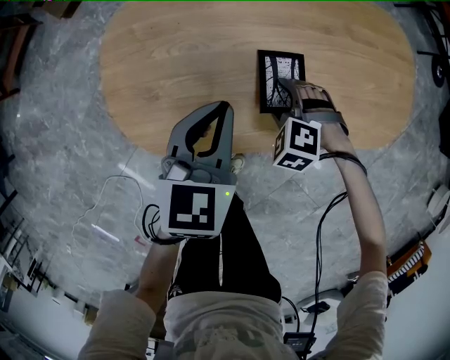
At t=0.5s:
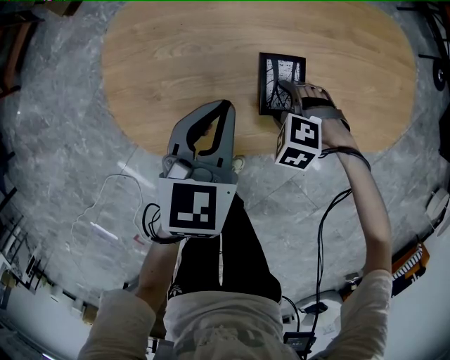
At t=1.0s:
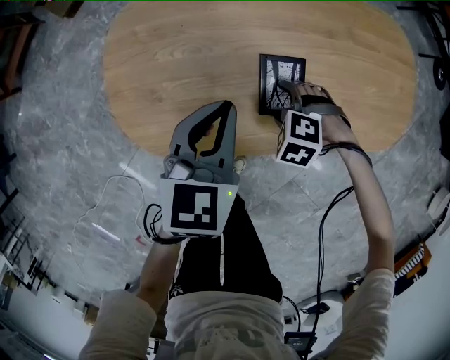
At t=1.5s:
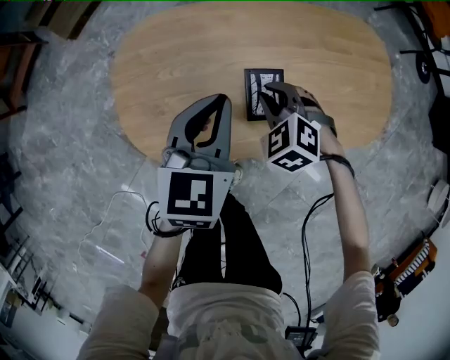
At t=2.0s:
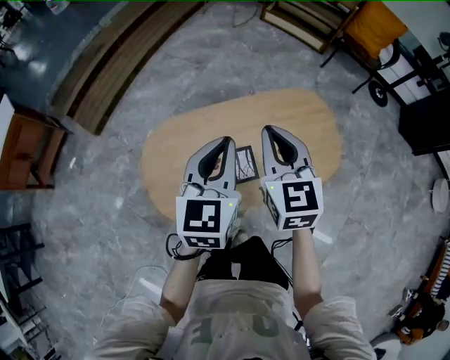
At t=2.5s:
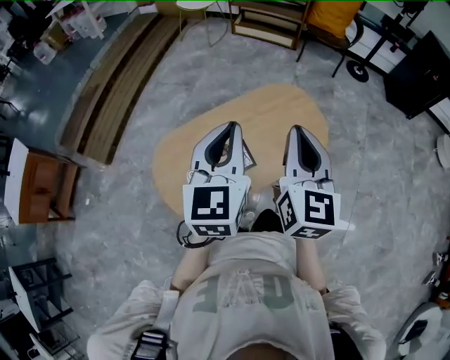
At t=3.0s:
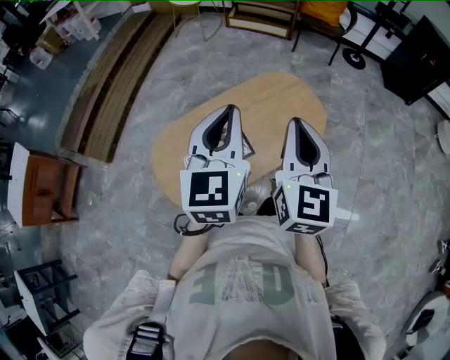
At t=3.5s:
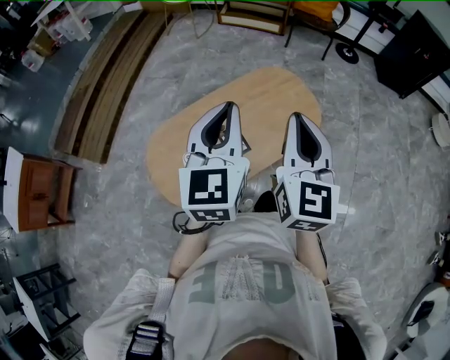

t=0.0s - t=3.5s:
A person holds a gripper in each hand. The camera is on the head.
t=0.0s - t=2.0s: The right gripper shifts about 50 cm upward, angles its fingers upward, by about 50 degrees, and closes its fingers; the left gripper travels upward by about 30 cm, and changes its angle by approximately 20 degrees.
t=2.0s - t=3.5s: The right gripper moves to the right, backward and upward, roughly 25 cm, and turns by about 30 degrees. The left gripper heads upward, to the right and backward, covering approximately 20 cm.

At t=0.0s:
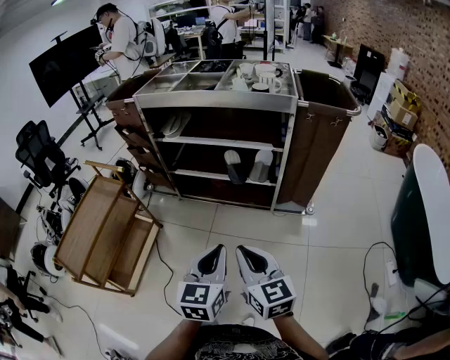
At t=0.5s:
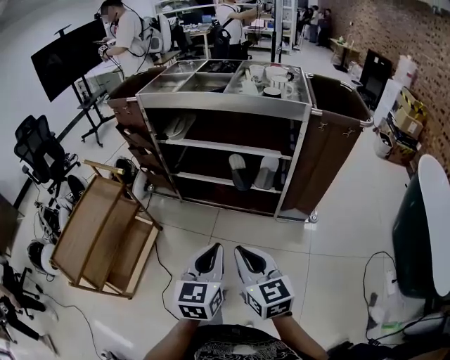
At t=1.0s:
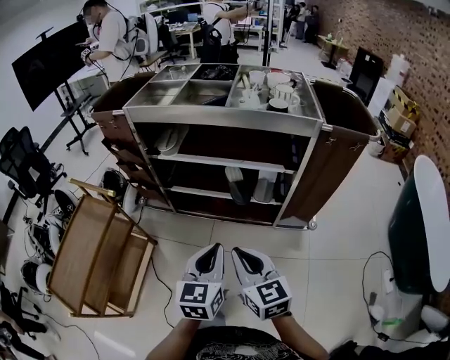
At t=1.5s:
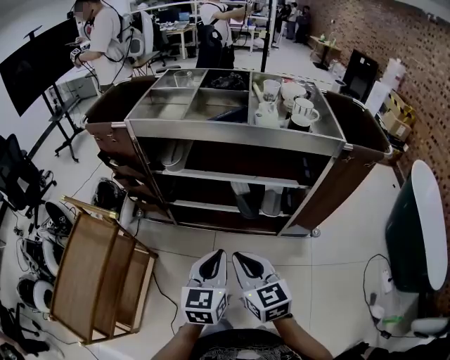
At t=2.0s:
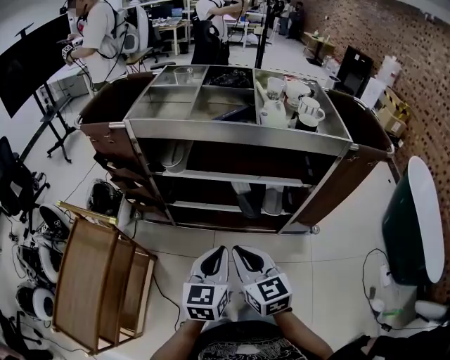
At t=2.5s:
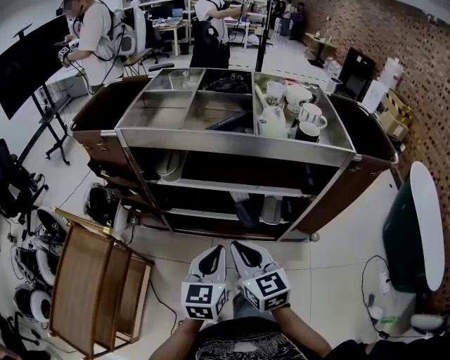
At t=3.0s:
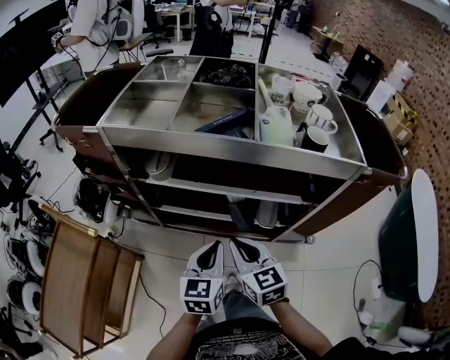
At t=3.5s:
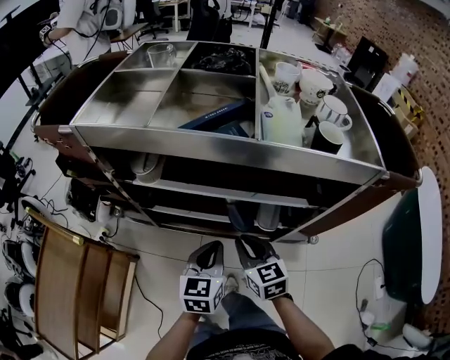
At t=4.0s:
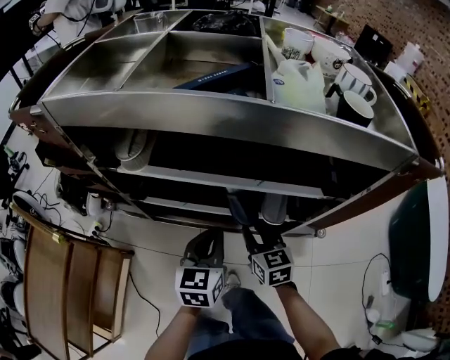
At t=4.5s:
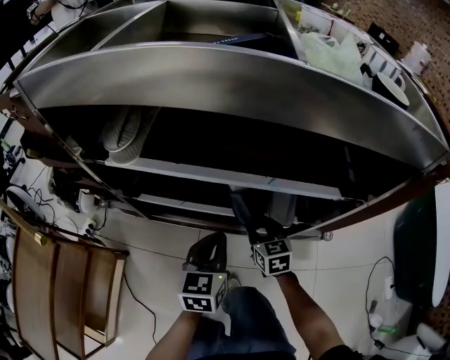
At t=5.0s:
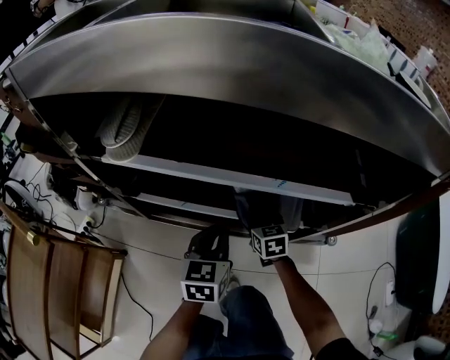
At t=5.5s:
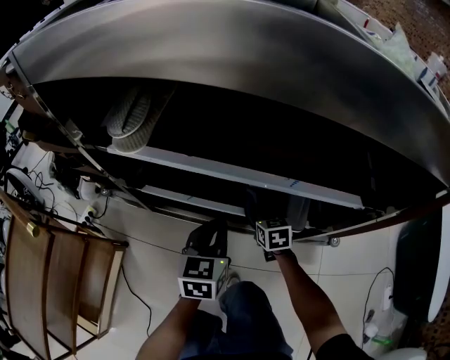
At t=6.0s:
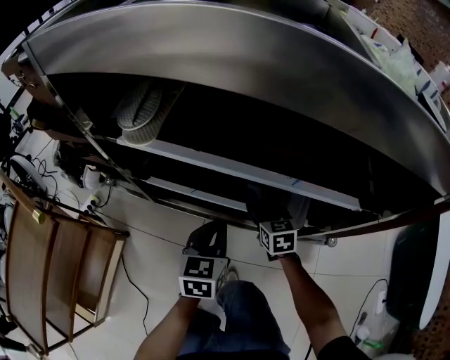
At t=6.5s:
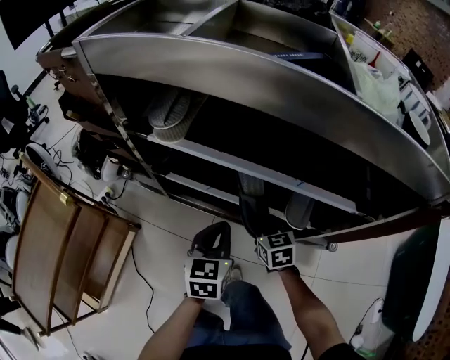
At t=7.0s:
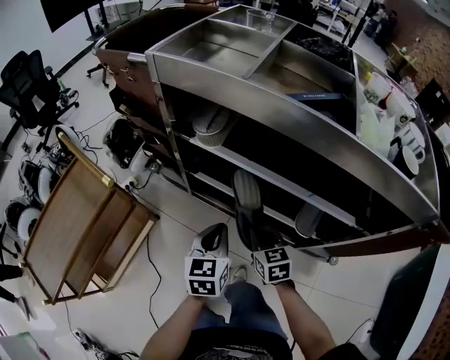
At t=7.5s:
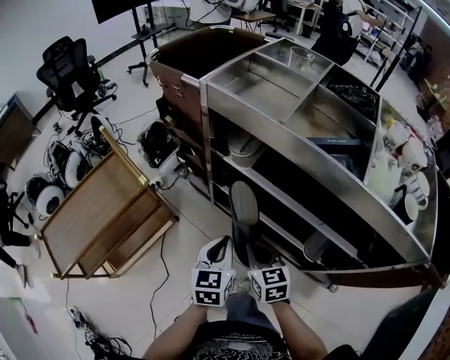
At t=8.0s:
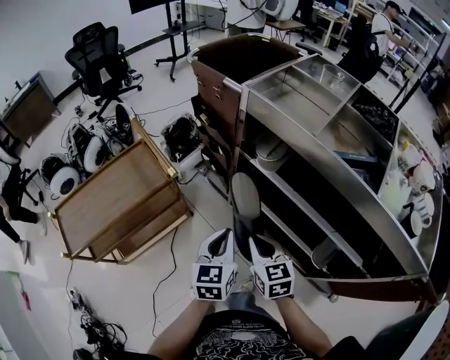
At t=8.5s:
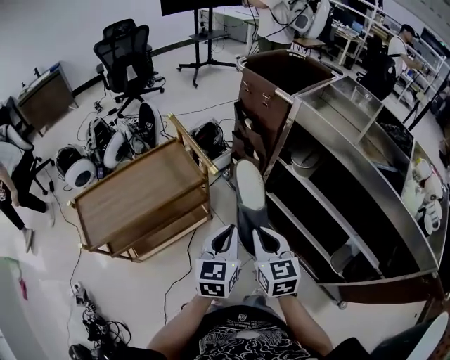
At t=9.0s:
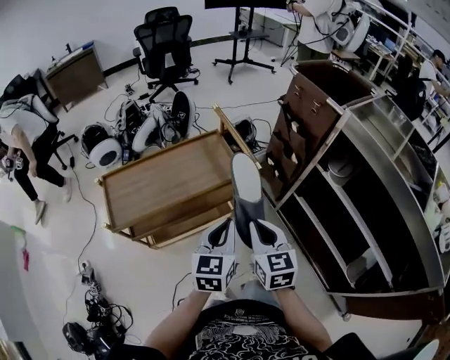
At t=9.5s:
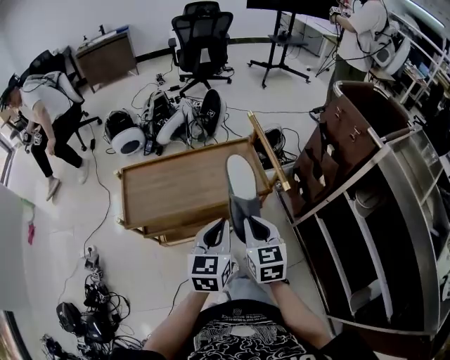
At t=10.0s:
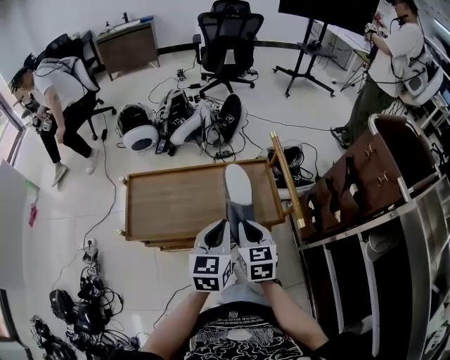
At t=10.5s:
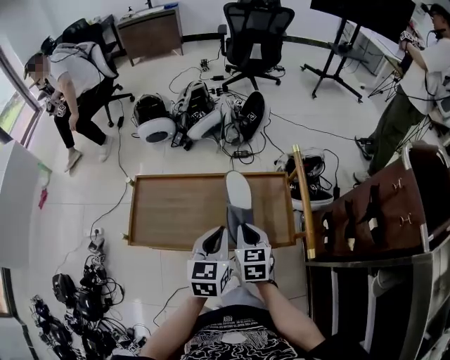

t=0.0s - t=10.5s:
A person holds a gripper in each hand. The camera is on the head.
t=0.0s - t=2.0s: Both grippers travel together forward and to the left, about 35 cm.
t=2.0s - t=4.0s: The right gripper travels downward, forward and to the right by some 35 cm. The left gripper shifts approximately 25 cm forward and downward.
t=4.0s - t=6.5s: The right gripper moves downward, roughly 10 cm, and opens, then closes again. The left gripper shifts approximately 10 cm downward and to the left.
t=6.5s - t=8.5s: The left gripper ends up approximately 35 cm from where it was, and turns by about 30 degrees, while the right gripper changes place by roughly 40 cm, and changes its angle by roughly 40 degrees.
t=8.5s - t=10.5s: The left gripper changes place by some 40 cm, and rotates about 40 degrees. The right gripper shifts by about 50 cm, and swivels some 30 degrees.

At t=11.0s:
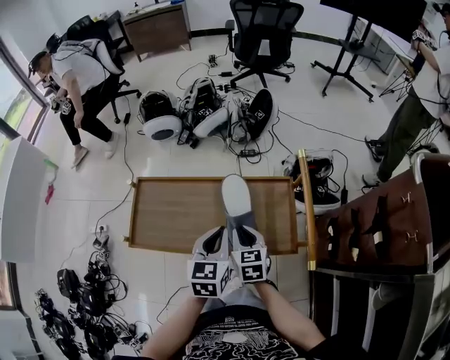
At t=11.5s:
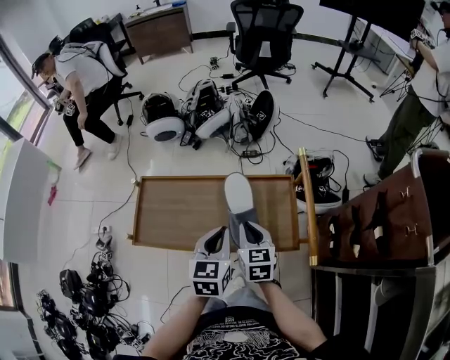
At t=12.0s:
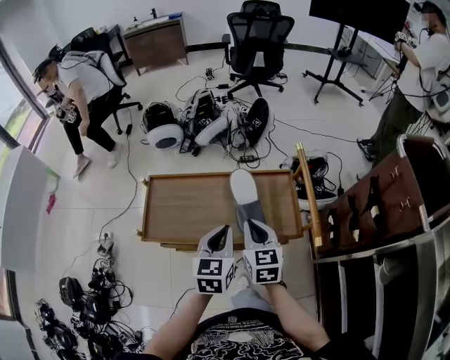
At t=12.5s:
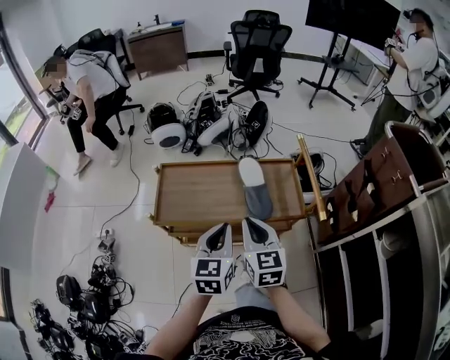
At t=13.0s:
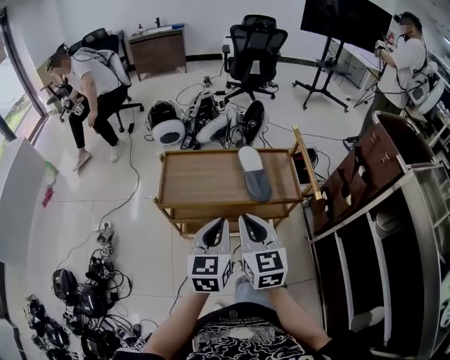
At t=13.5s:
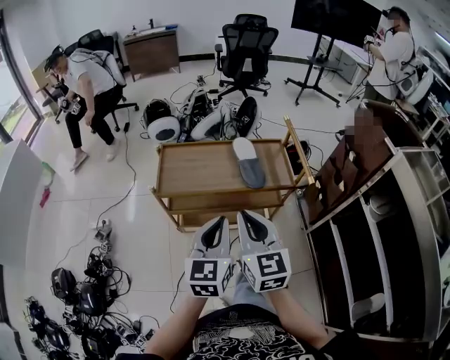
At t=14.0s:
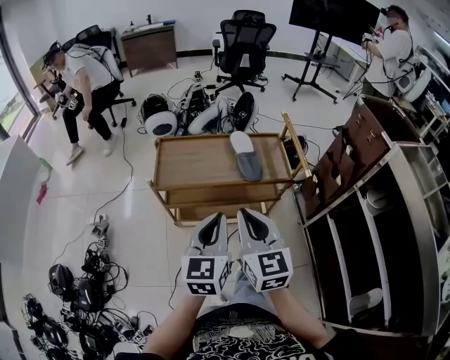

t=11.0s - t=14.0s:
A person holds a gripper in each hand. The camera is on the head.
t=11.0s - t=12.5s: The left gripper heads backward, to the left and upward, covering roughly 20 cm, while the right gripper goes about 20 cm upward, backward and to the left.
t=12.5s - t=14.0s: The left gripper heads backward, covering approximately 15 cm. The right gripper travels backward and upward by about 20 cm.

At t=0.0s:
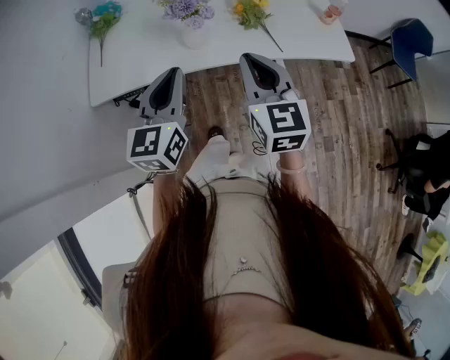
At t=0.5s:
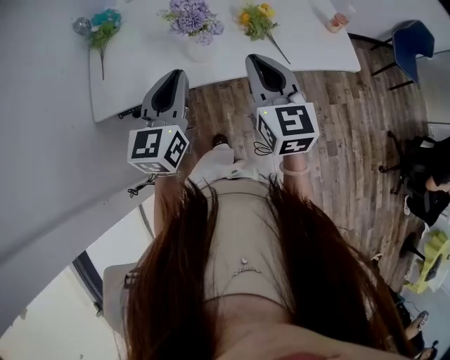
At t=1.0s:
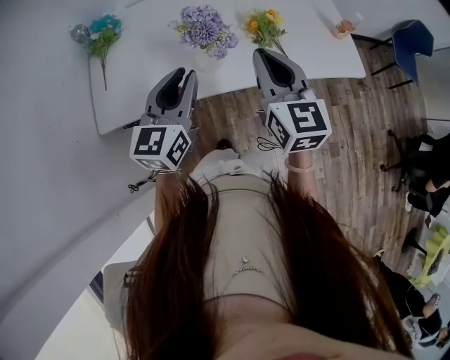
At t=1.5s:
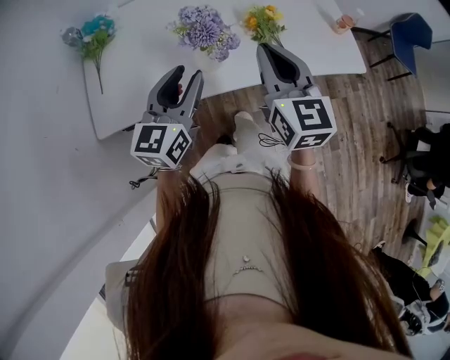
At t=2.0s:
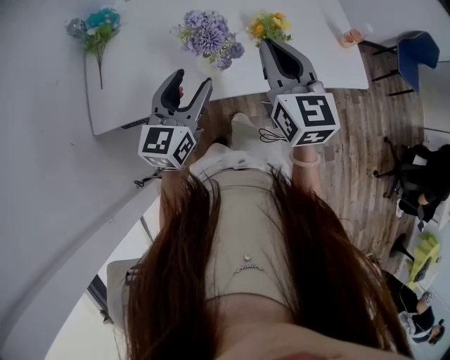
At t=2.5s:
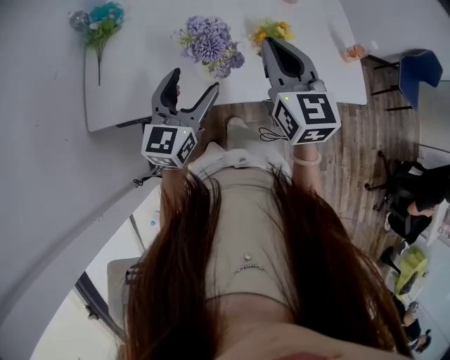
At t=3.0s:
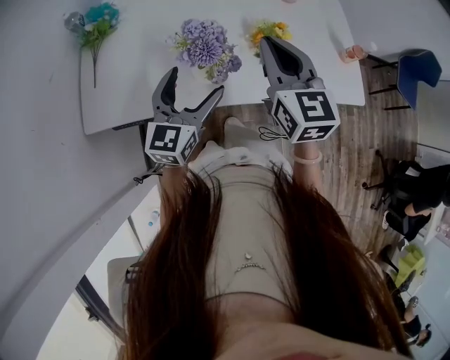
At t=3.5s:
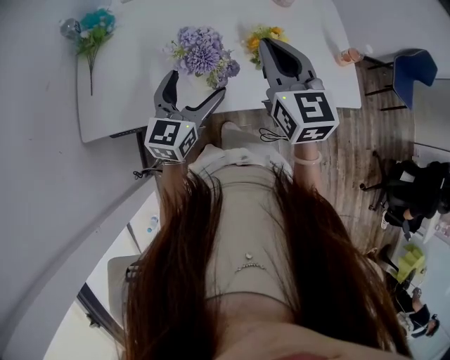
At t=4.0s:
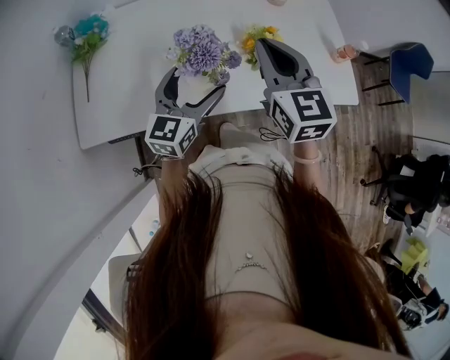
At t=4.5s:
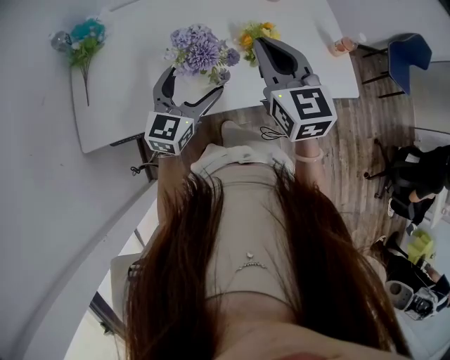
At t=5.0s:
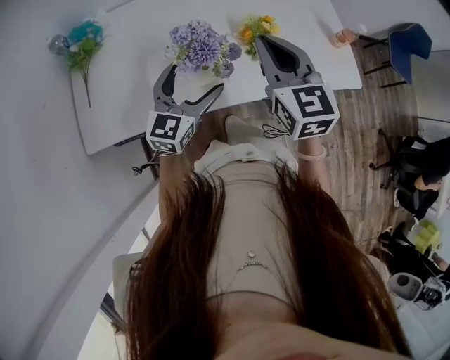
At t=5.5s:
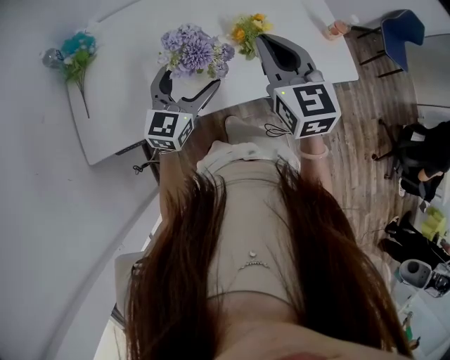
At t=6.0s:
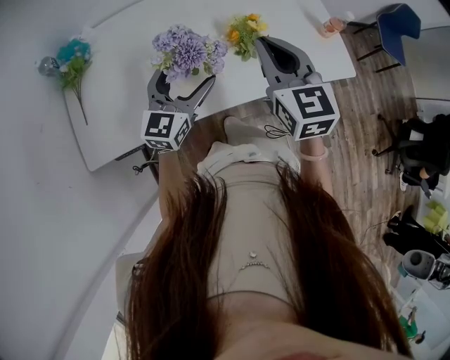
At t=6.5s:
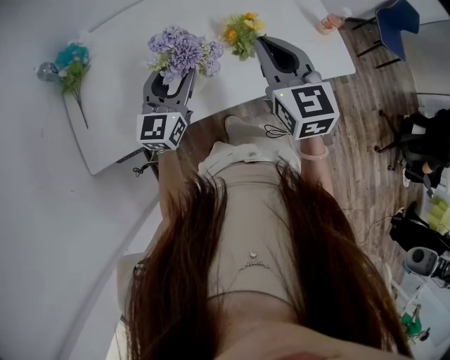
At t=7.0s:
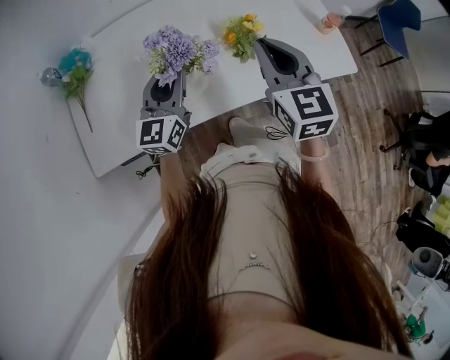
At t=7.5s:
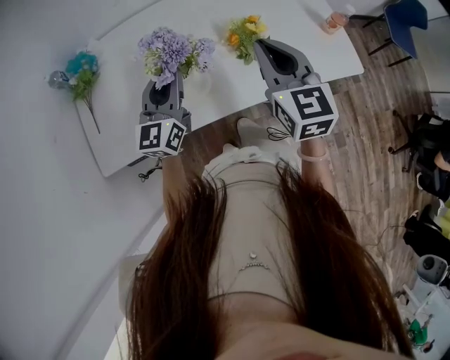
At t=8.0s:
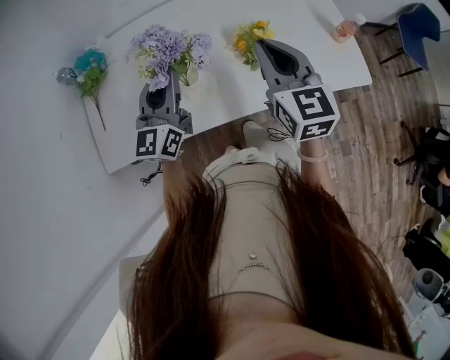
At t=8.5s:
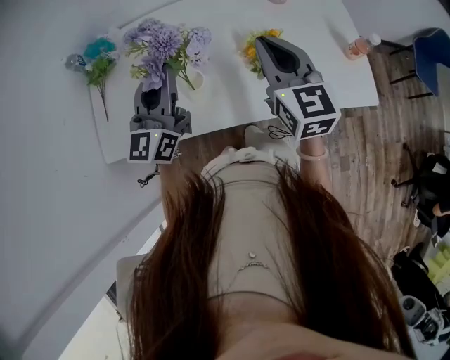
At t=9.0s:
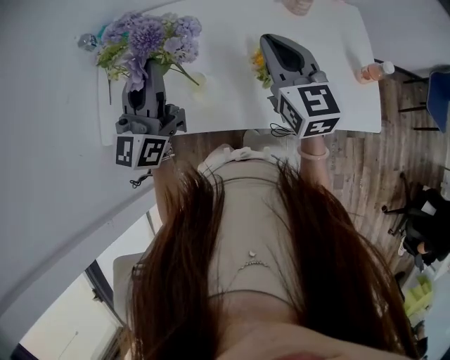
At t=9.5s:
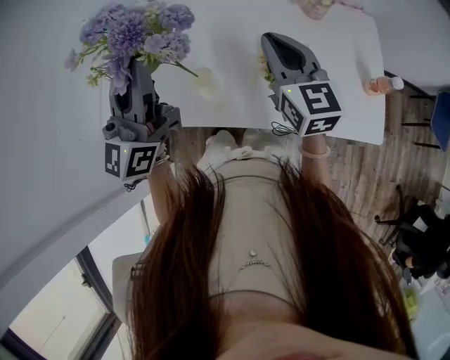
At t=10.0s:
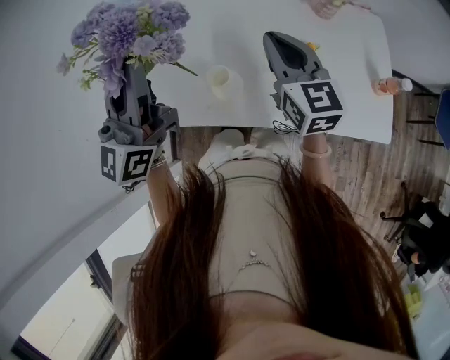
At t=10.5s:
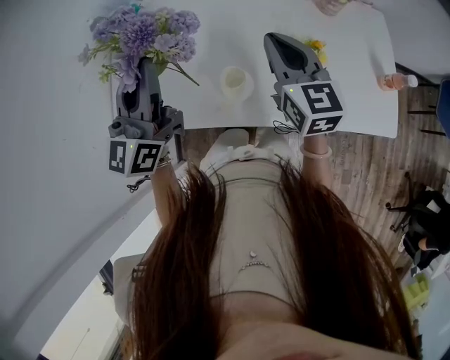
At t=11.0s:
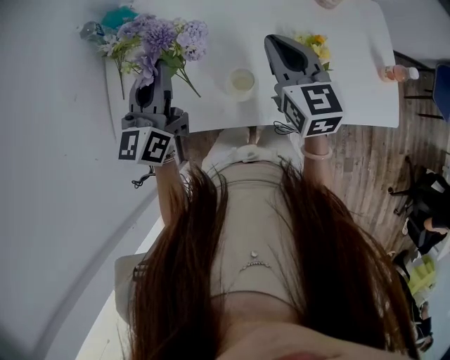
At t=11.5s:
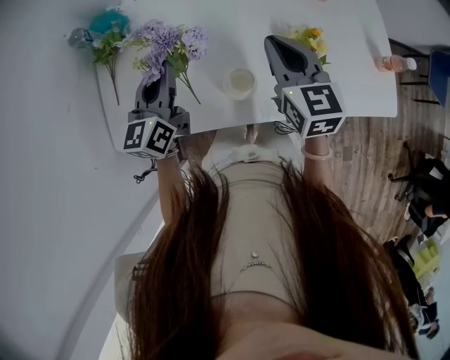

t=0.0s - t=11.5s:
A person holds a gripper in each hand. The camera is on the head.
t=0.0s - t=2.0s: The right gripper is displaced forward by about 15 cm; the left gripper shifts roughly 15 cm forward and downward, and opens its fingers.
t=2.0s - t=4.0s: Both grippers travel together forward, approximately 5 cm. The left gripper opens.
t=4.0s - t=6.0s: The grippers move only a little.
t=6.0s - t=7.5s: The left gripper ends up roughly 5 cm from where it was, and closes up.
t=7.5s - t=9.5s: The left gripper goes approximately 15 cm upward, and swivels roughly 30 degrees. Meanwhile the right gripper is displaced forward by approximately 10 cm, and turns by approximately 20 degrees.
t=9.5s - t=11.5s: The left gripper heads downward, forward and to the left, covering about 20 cm, and changes its angle by roughly 30 degrees. The right gripper shifts approximately 10 cm to the left and downward.
